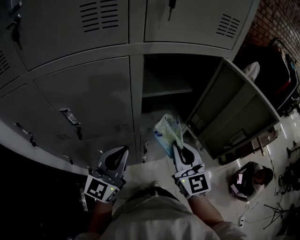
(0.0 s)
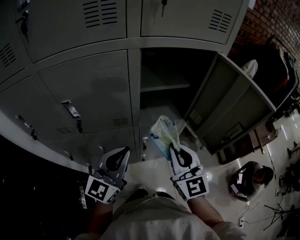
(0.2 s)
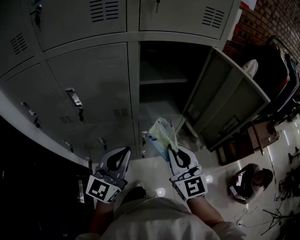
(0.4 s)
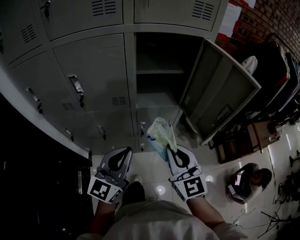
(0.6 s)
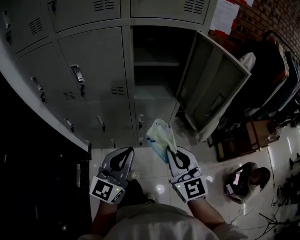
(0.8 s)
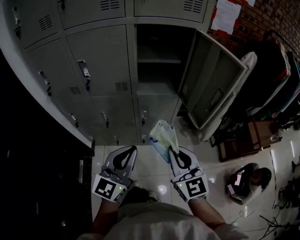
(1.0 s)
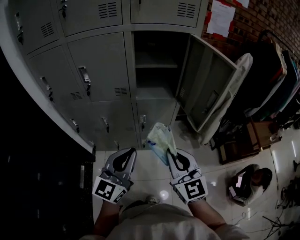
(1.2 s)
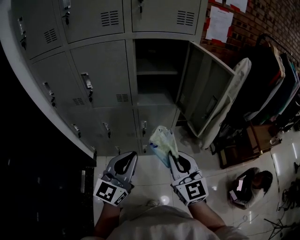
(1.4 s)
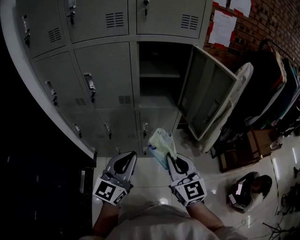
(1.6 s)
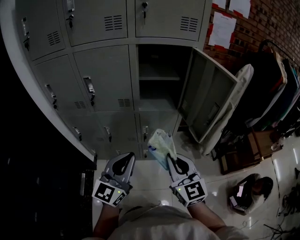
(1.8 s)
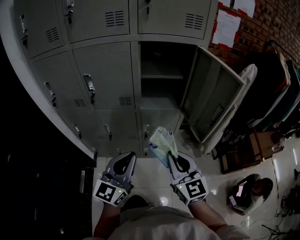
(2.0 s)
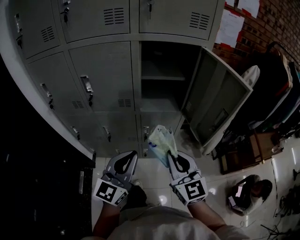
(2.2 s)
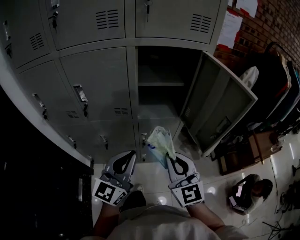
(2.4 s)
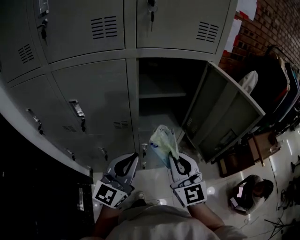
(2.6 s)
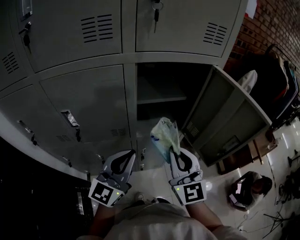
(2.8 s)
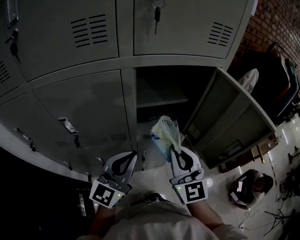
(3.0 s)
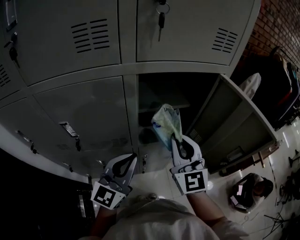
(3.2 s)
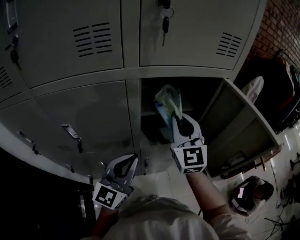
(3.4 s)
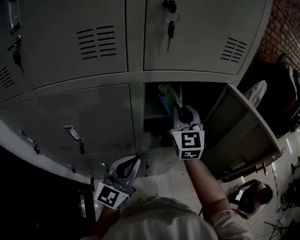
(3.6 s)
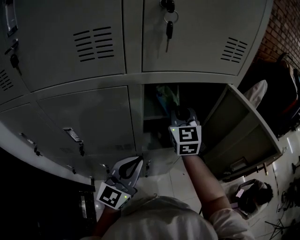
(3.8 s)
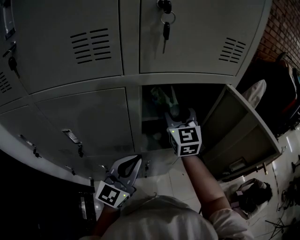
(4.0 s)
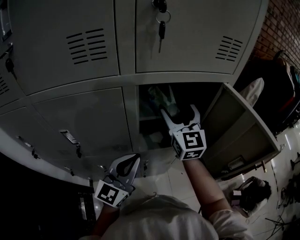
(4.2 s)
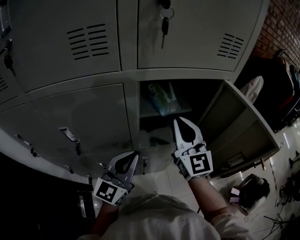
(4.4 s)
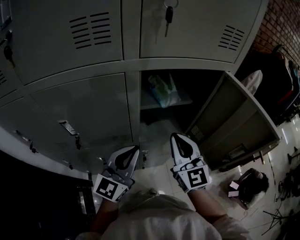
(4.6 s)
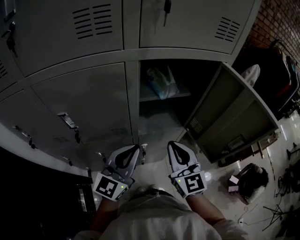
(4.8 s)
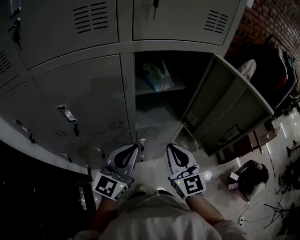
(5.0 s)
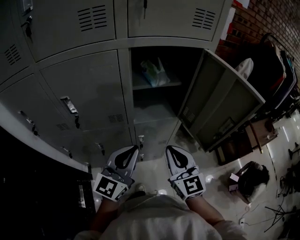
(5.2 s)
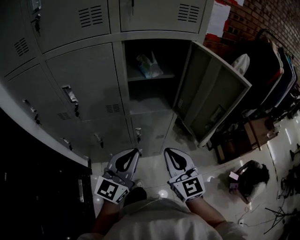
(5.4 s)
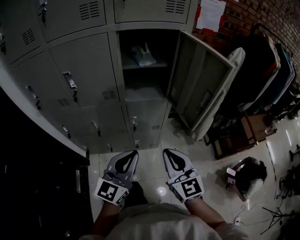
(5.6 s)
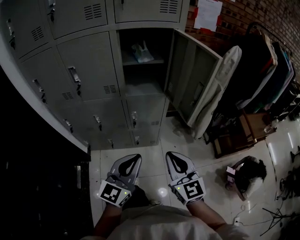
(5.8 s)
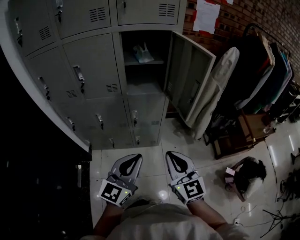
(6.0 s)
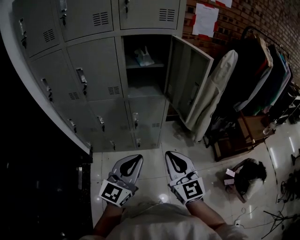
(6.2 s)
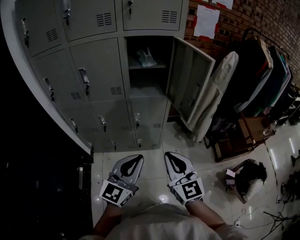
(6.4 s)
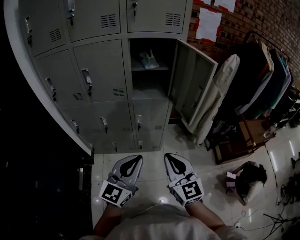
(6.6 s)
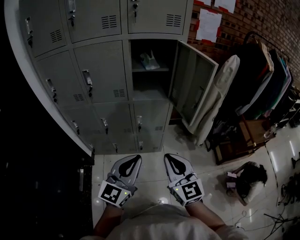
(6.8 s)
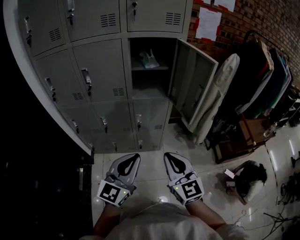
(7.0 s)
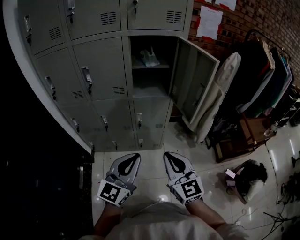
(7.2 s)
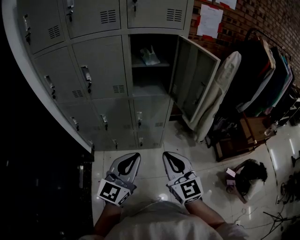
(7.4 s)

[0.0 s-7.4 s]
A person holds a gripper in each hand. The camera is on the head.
0.0 to 1.4 s: The left gripper goes some 25 cm backward and to the right, while the right gripper travels backward by approximately 25 cm.
1.4 to 3.0 s: Both grippers move forward, roughly 25 cm.
3.0 to 4.4 s: The left gripper moves some 5 cm, while the right gripper moves forward and upward, some 15 cm, and opens, then closes once more.
4.4 to 6.0 s: The left gripper is displaced backward and to the right by roughly 35 cm. The right gripper heads backward, covering about 40 cm.
6.0 to 7.4 s: The grippers stay close to where they were, moving slightly.

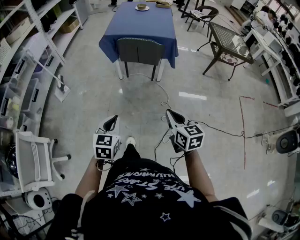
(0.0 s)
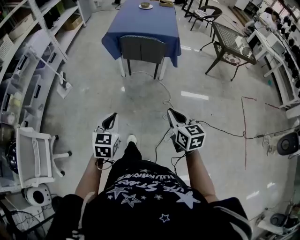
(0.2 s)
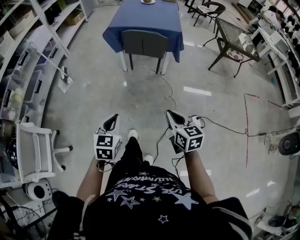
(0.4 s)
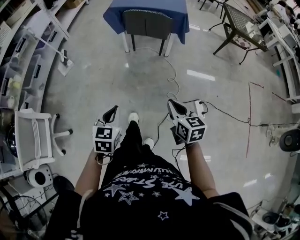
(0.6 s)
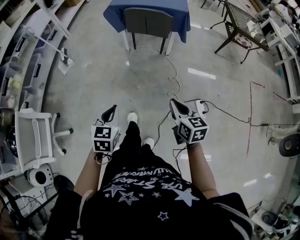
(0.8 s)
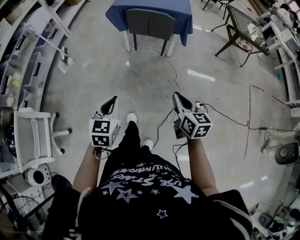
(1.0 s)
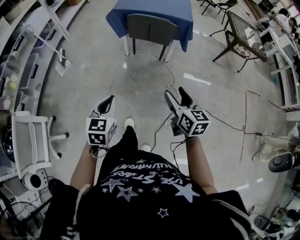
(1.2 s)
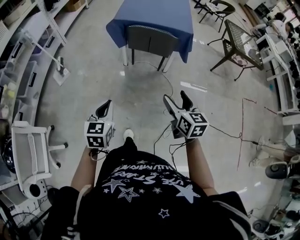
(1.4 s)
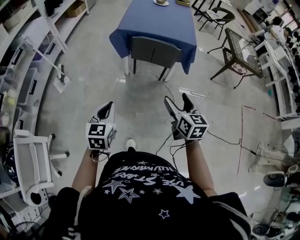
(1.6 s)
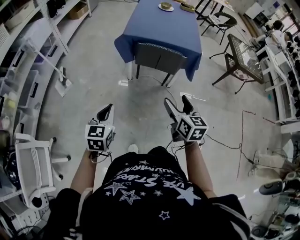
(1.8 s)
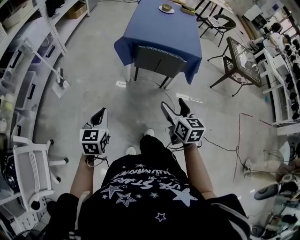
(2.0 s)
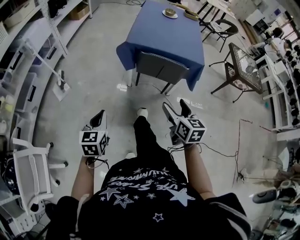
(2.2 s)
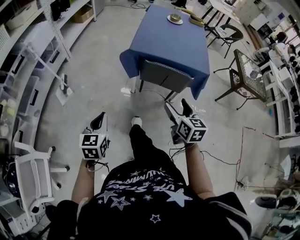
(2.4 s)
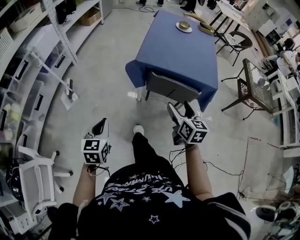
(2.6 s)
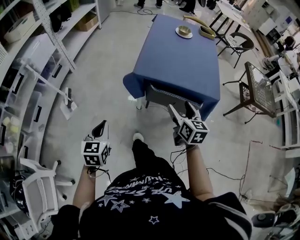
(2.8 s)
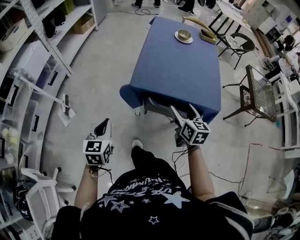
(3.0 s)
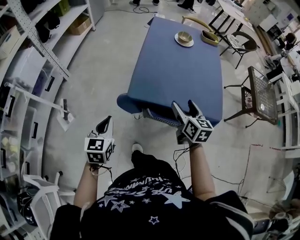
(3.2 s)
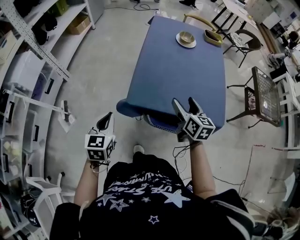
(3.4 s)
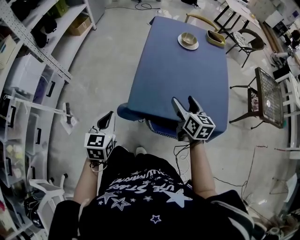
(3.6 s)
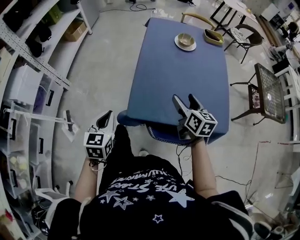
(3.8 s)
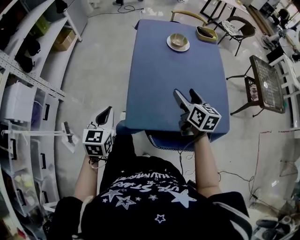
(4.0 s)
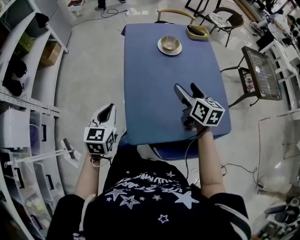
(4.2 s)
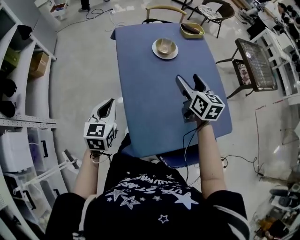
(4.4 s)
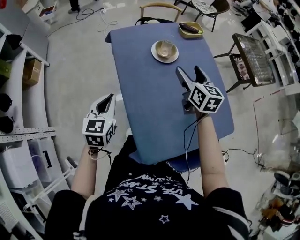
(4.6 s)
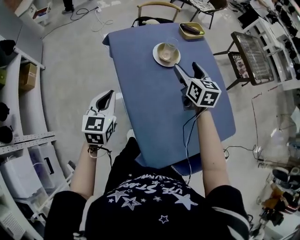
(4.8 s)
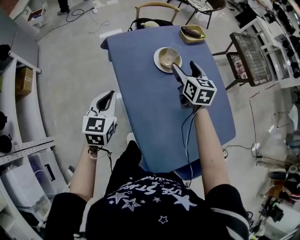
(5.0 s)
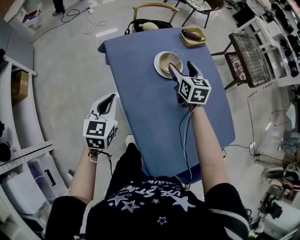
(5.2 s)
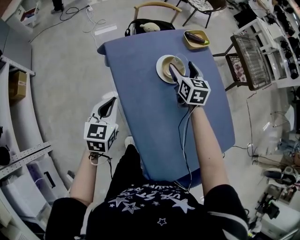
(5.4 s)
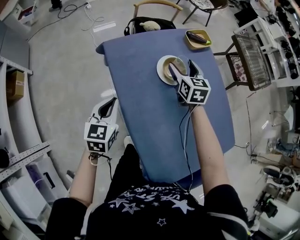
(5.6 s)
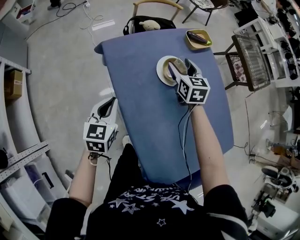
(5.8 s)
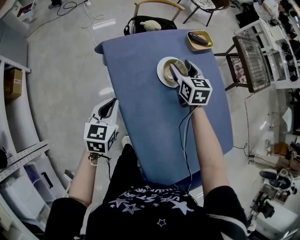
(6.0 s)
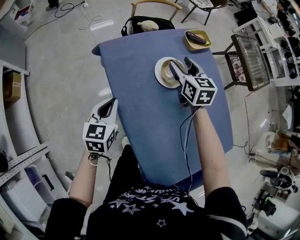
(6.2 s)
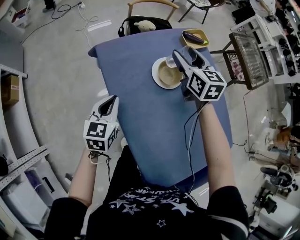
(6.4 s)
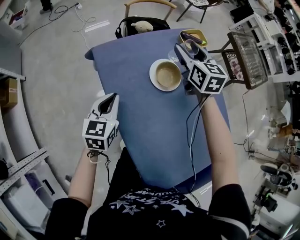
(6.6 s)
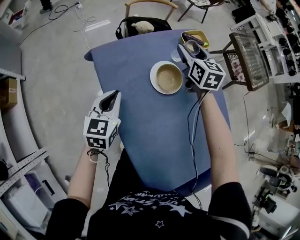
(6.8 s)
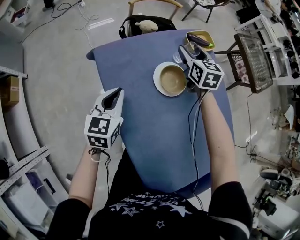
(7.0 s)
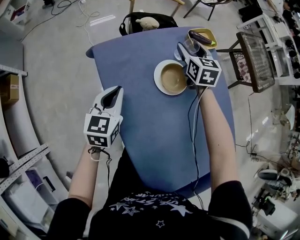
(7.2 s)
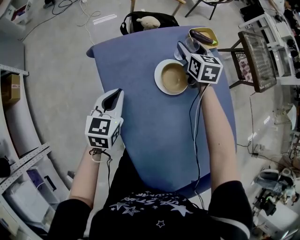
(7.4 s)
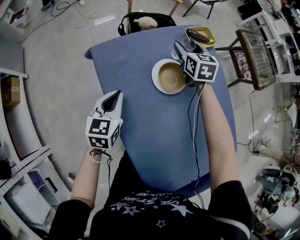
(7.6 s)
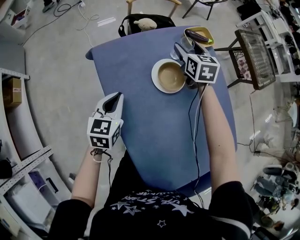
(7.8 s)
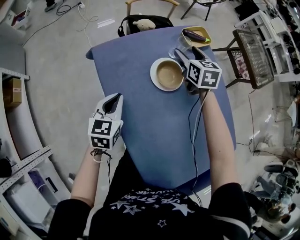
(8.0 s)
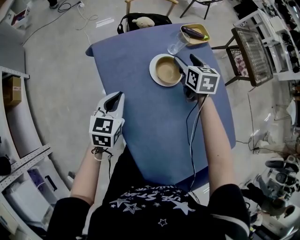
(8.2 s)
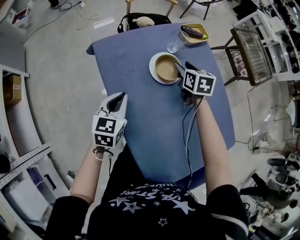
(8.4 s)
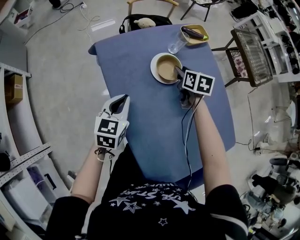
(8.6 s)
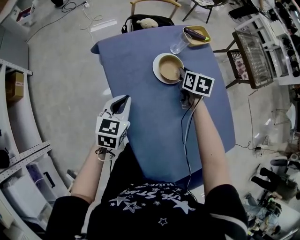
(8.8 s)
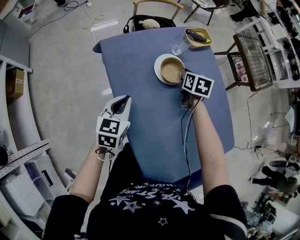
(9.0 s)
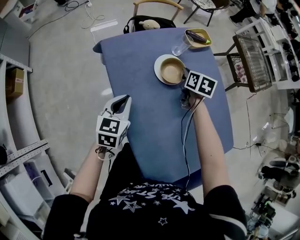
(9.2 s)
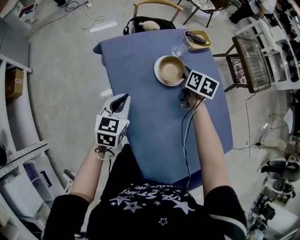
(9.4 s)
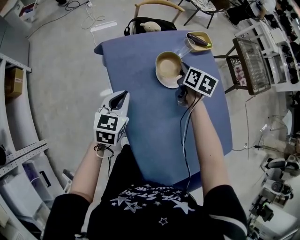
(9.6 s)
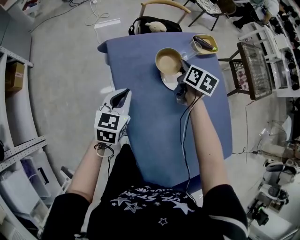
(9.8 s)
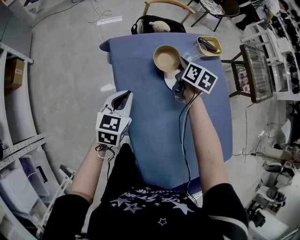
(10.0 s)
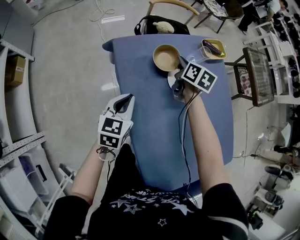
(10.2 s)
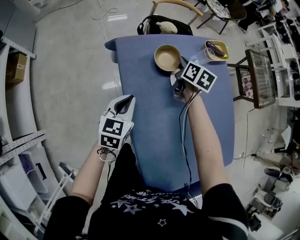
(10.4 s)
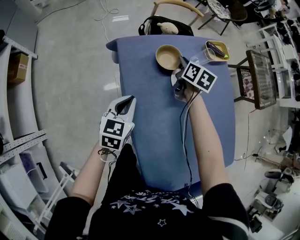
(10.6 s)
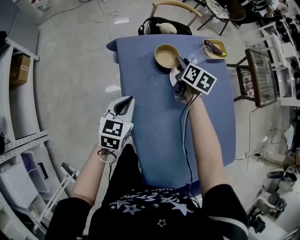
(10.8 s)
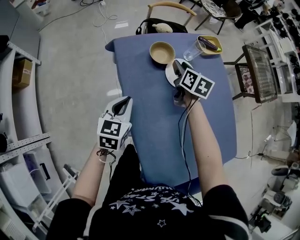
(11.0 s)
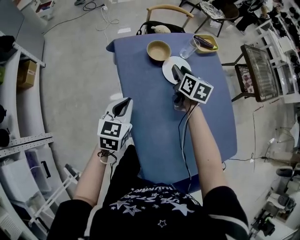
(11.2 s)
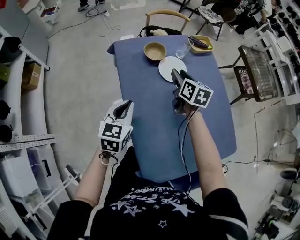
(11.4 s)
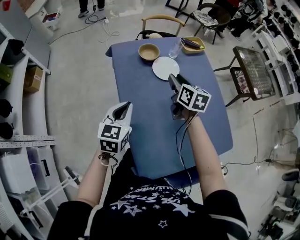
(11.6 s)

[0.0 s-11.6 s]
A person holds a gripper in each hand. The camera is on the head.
0.0 to 1.4 s: The right gripper heads forward, covering approximately 10 cm, and opens its fingers. The left gripper is displaced forward and to the left by approximately 10 cm.
1.4 to 2.8 s: The right gripper heads forward, covering roughly 40 cm; the left gripper travels forward and to the left by some 35 cm.
2.8 to 4.4 s: The pair of grippers is taken some 50 cm. The left gripper turns by approximately 30 degrees; the right gripper rotates about 20 degrees.
4.4 to 5.8 s: The grippers both shift forward by about 25 cm. The right gripper rotates some 20 degrees.
5.8 to 7.2 s: Both grippers move forward, some 10 cm.
7.2 to 8.8 s: The left gripper shifts some 10 cm backward, while the right gripper goes roughly 15 cm backward and downward, swivels approximately 30 degrees, and closes.
8.8 to 10.2 s: The right gripper moves to the left and forward, approximately 15 cm. The left gripper shifts by roughly 5 cm.
10.2 to 11.6 s: The right gripper shifts about 20 cm backward and upward, and opens up. Meanwhile the left gripper travels backward, upward and to the right by some 20 cm.

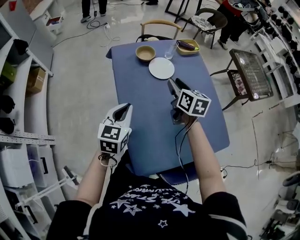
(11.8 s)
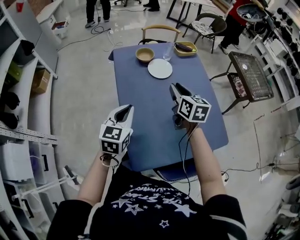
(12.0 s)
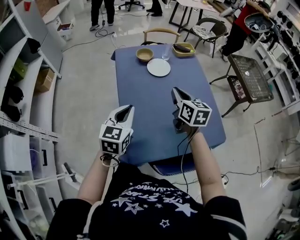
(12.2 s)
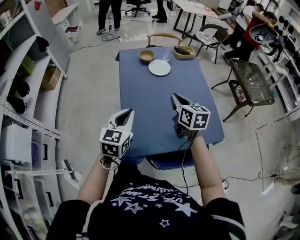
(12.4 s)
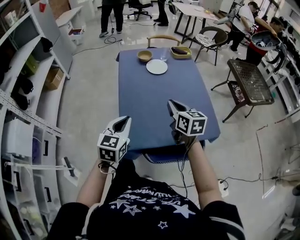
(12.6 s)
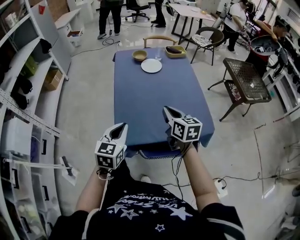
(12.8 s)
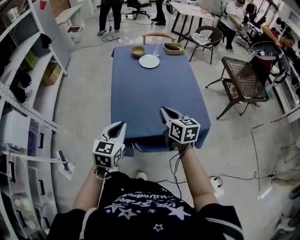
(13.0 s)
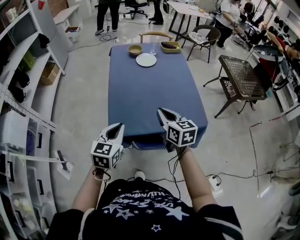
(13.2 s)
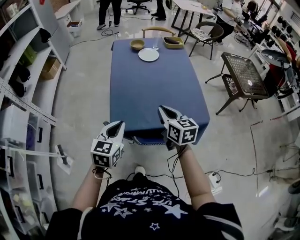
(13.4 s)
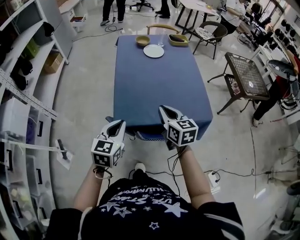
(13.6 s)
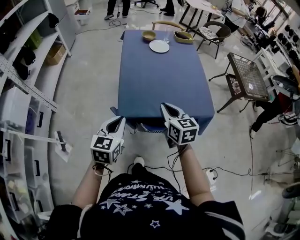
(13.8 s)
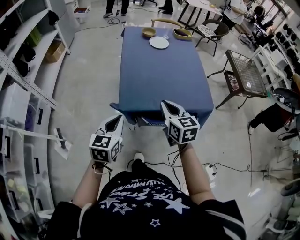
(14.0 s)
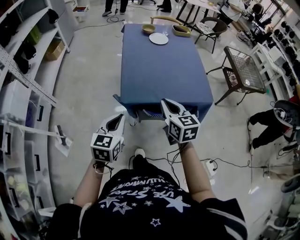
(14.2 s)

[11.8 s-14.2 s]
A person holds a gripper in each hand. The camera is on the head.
11.8 to 13.0 s: Both grippers travel together backward, about 30 cm. The right gripper closes.
13.0 to 14.2 s: Both grippers move backward and to the left, approximately 15 cm.

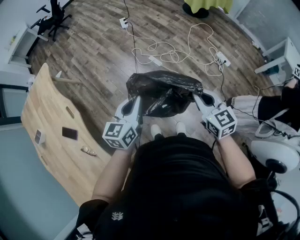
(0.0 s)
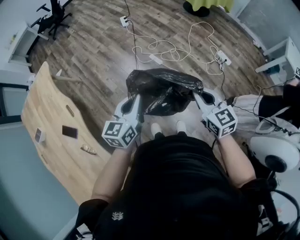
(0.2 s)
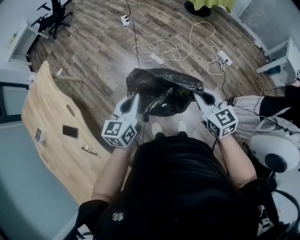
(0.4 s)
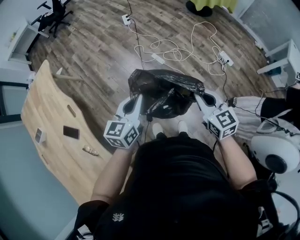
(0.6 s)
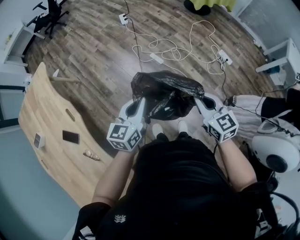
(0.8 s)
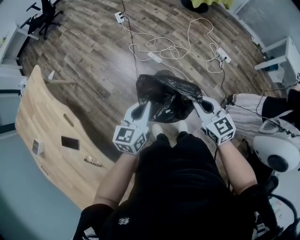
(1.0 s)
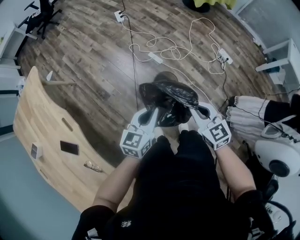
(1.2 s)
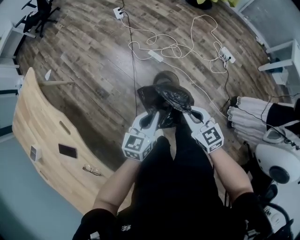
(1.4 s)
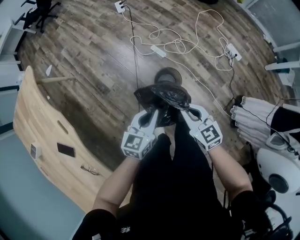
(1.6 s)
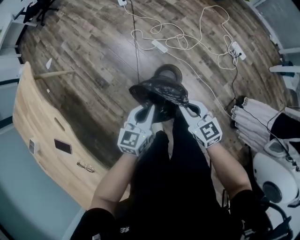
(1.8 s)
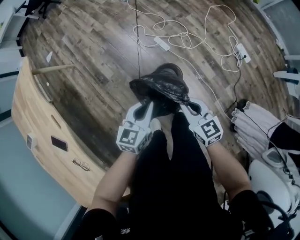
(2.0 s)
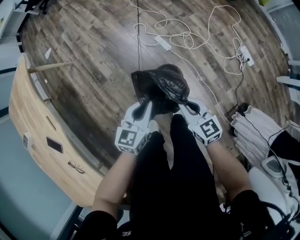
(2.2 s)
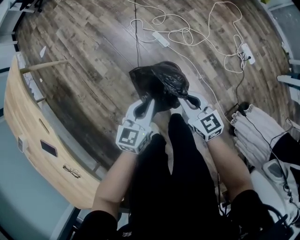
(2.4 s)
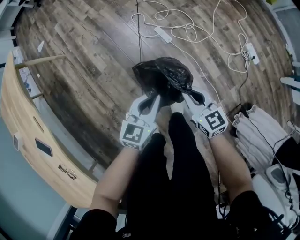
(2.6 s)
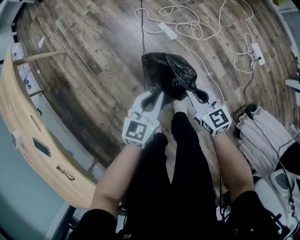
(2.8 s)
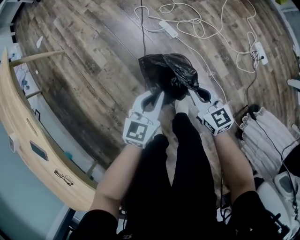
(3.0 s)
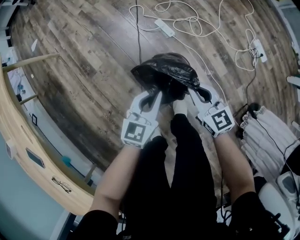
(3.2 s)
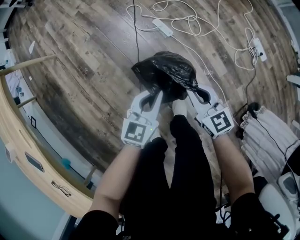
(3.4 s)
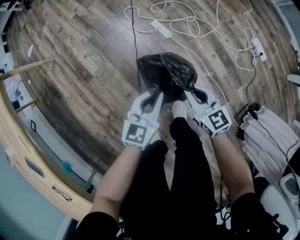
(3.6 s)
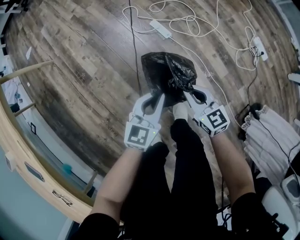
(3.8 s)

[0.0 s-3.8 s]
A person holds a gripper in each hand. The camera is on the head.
0.0 to 1.2 s: The left gripper shifts some 10 cm downward. The right gripper shifts approximately 15 cm to the left and downward.
1.2 to 2.6 s: Both grippers move downward and forward, approximately 30 cm.
2.6 to 3.8 s: The two grippers go some 15 cm downward.
